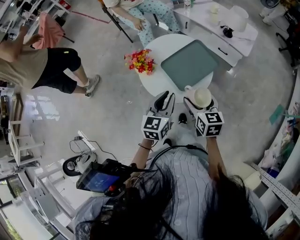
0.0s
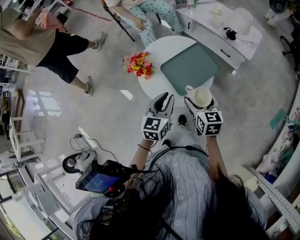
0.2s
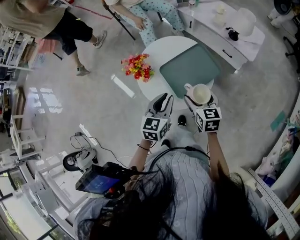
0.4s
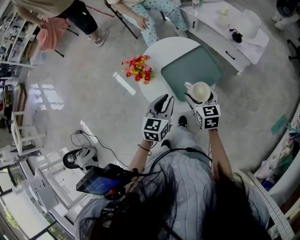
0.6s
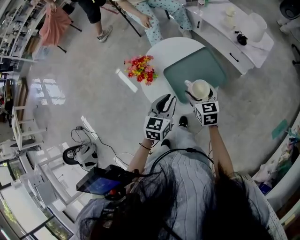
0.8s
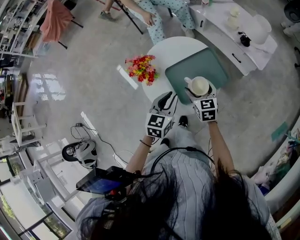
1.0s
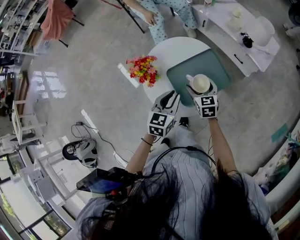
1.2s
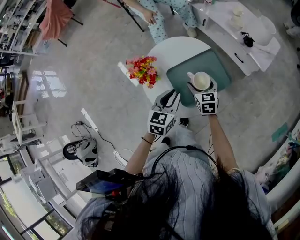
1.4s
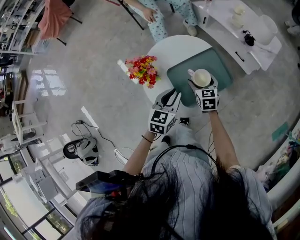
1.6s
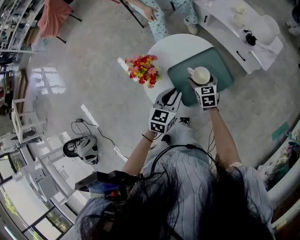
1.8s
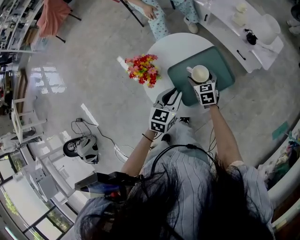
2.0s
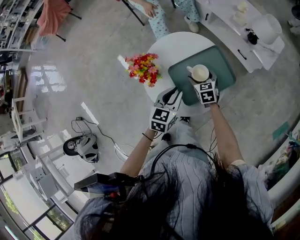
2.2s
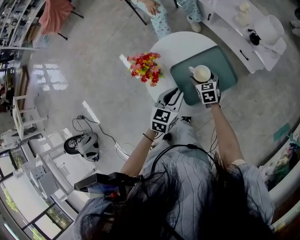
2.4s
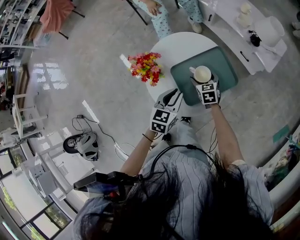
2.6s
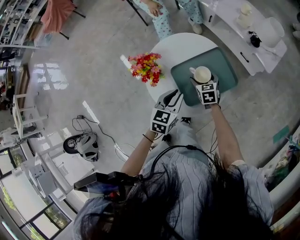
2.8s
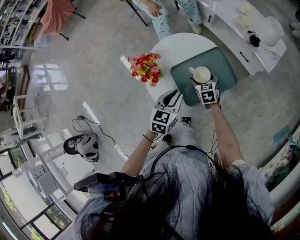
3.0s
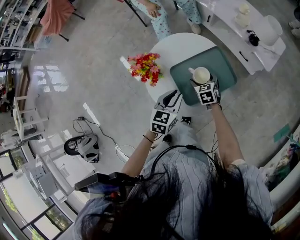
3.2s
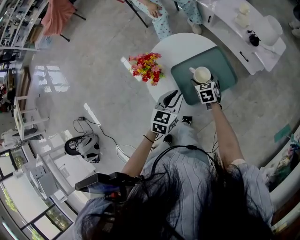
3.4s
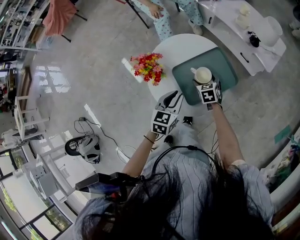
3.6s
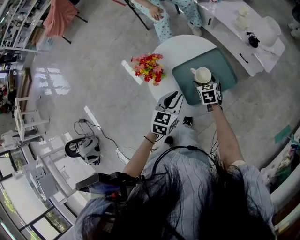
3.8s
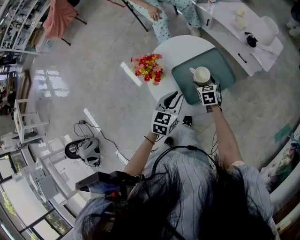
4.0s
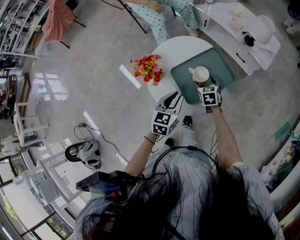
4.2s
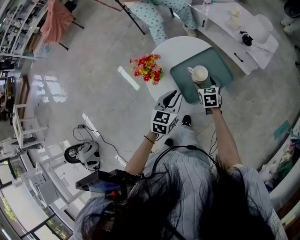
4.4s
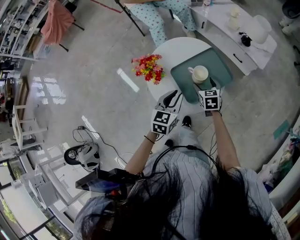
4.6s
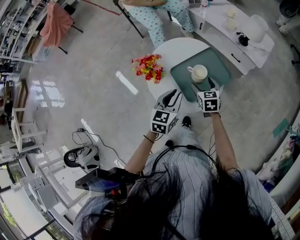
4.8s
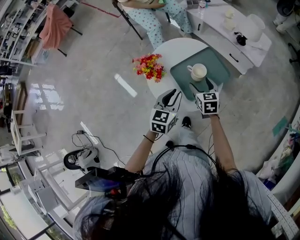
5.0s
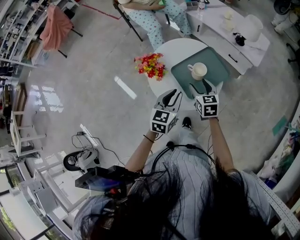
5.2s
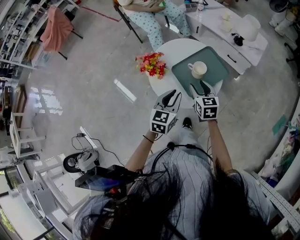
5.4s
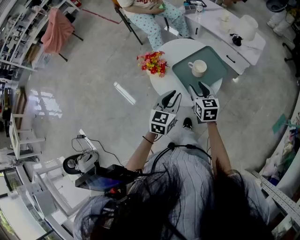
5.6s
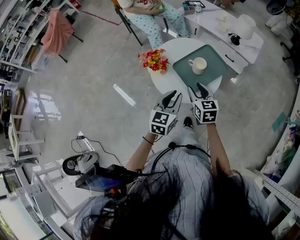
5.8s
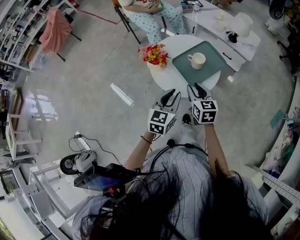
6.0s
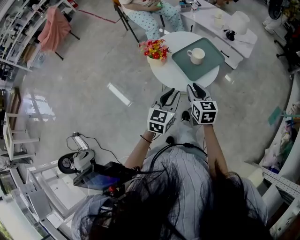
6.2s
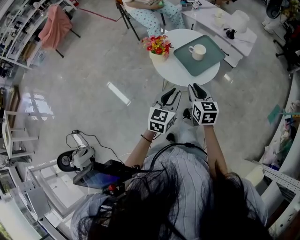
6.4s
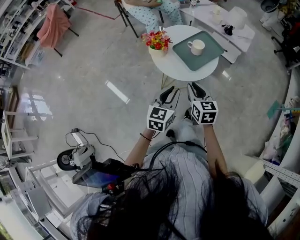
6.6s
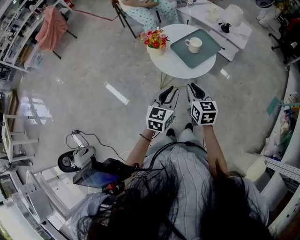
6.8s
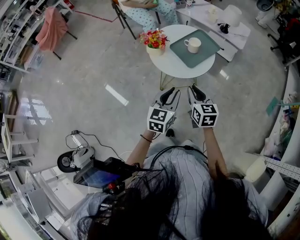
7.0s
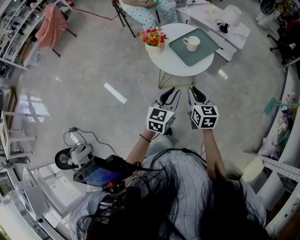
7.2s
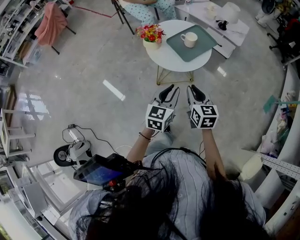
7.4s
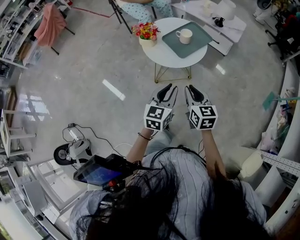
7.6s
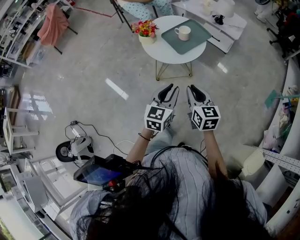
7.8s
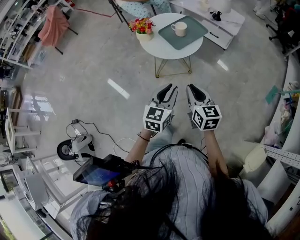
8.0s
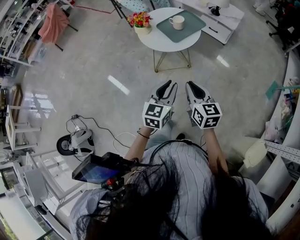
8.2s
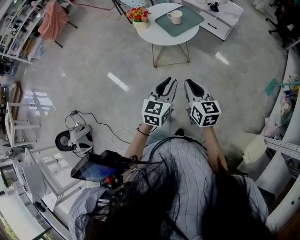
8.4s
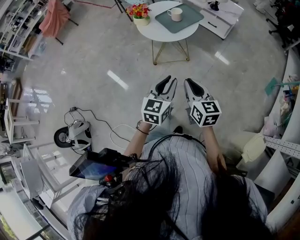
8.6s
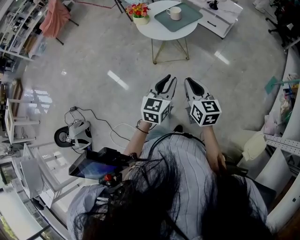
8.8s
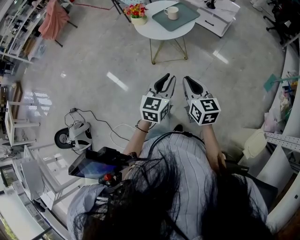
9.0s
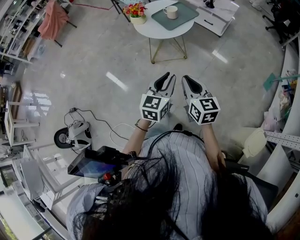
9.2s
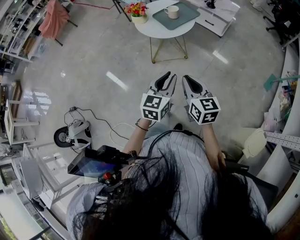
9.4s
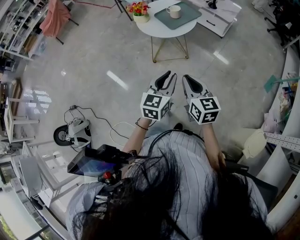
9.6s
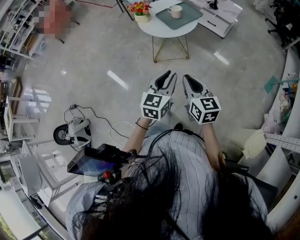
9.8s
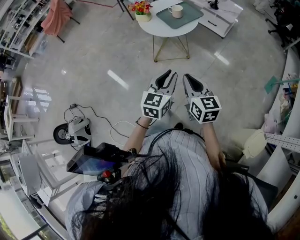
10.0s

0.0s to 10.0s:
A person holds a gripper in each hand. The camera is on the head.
0.0s to 1.4s: The right gripper moves forward and downward, some 25 cm. Meanwhile the left gripper goes roughly 15 cm forward and downward.
1.4s to 2.8s: The right gripper goes approximately 5 cm downward.
2.8s to 4.2s: The grippers stay close to where they were, moving slightly.
4.2s to 5.8s: The right gripper is displaced upward, backward and to the left by approximately 25 cm, turns by some 20 degrees, and closes. Meanwhile the left gripper travels backward and upward by roughly 15 cm.
5.8s to 7.2s: Both grippers move backward, some 20 cm.
7.2s to 8.6s: The grippers both shift backward and to the right by some 20 cm.
8.6s to 10.0s: The grippers move only a little.

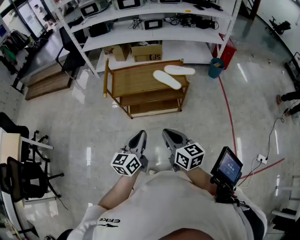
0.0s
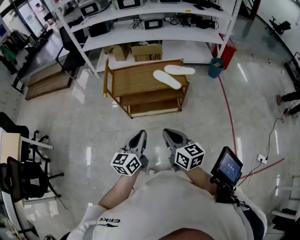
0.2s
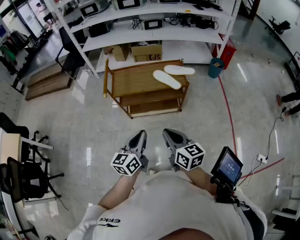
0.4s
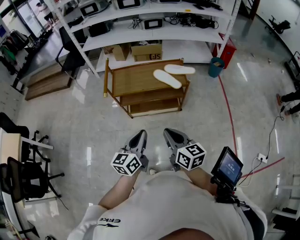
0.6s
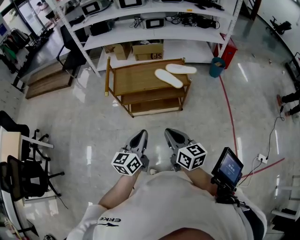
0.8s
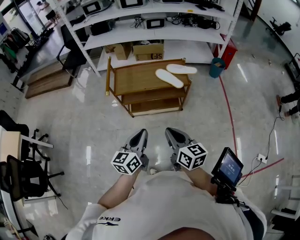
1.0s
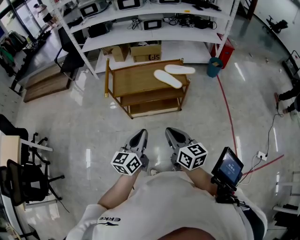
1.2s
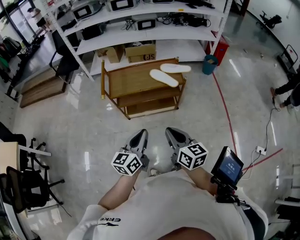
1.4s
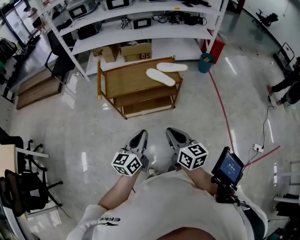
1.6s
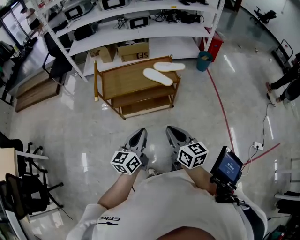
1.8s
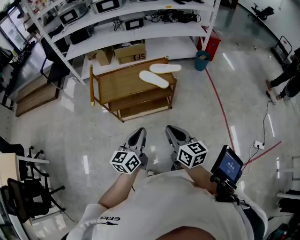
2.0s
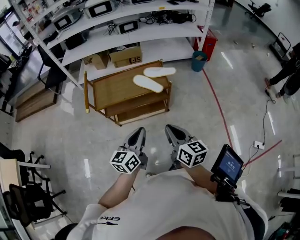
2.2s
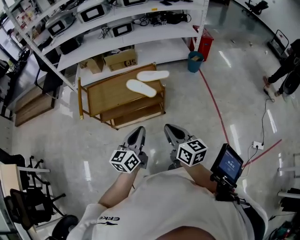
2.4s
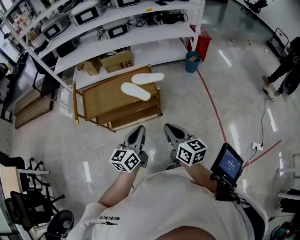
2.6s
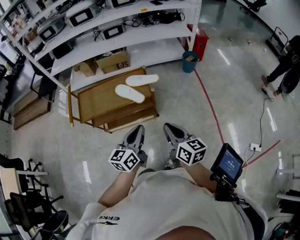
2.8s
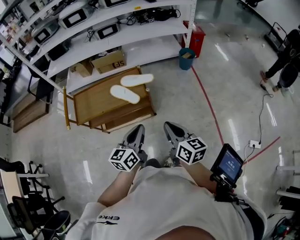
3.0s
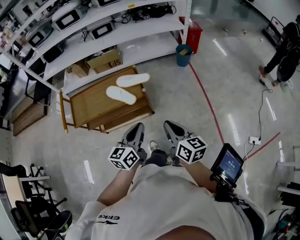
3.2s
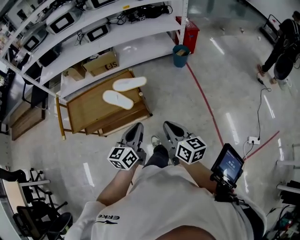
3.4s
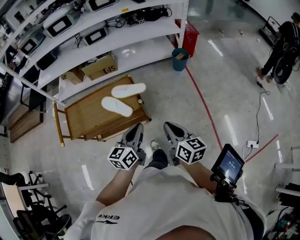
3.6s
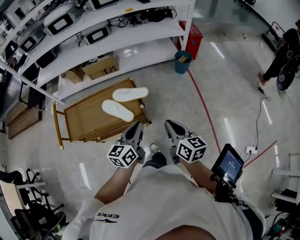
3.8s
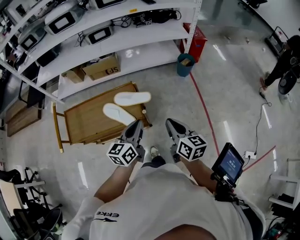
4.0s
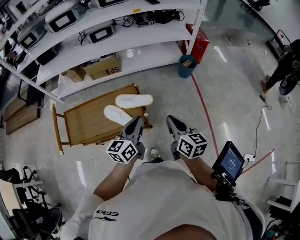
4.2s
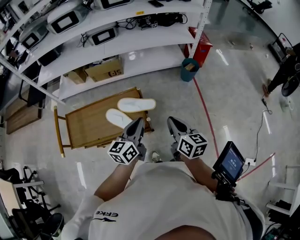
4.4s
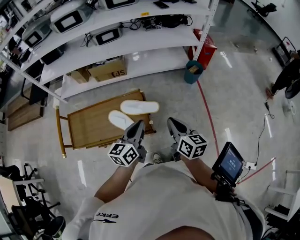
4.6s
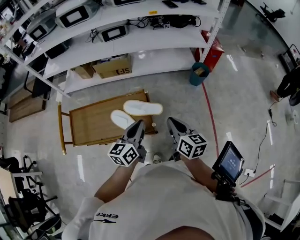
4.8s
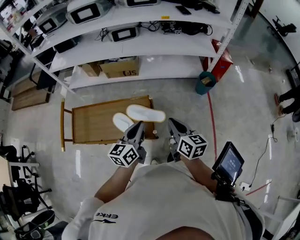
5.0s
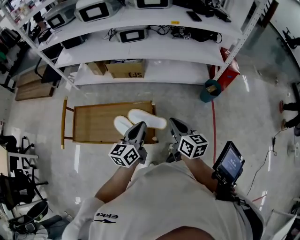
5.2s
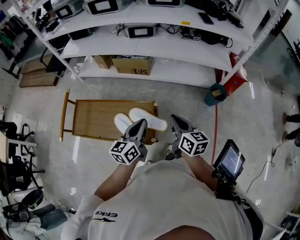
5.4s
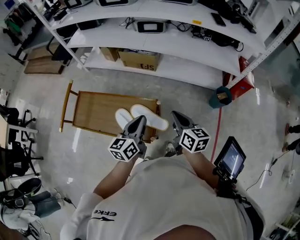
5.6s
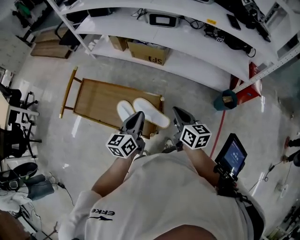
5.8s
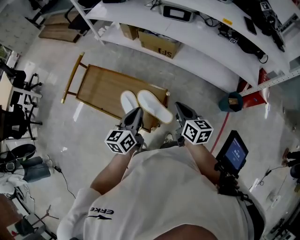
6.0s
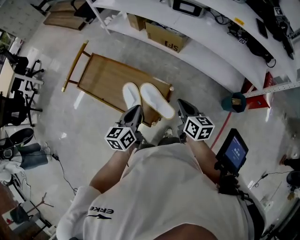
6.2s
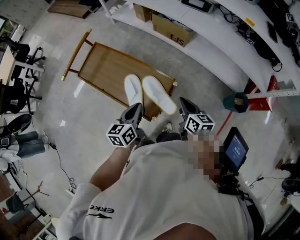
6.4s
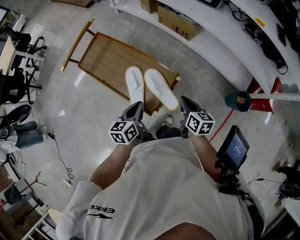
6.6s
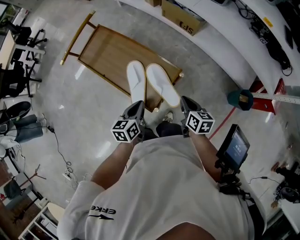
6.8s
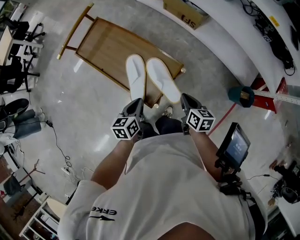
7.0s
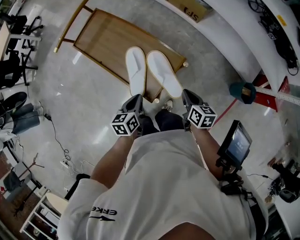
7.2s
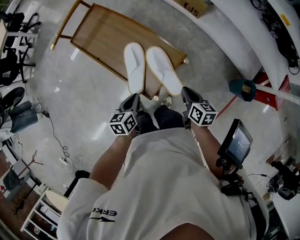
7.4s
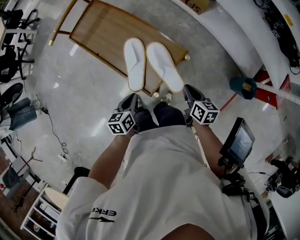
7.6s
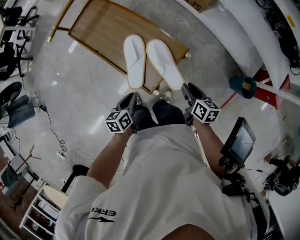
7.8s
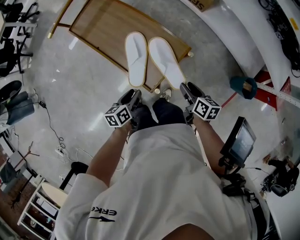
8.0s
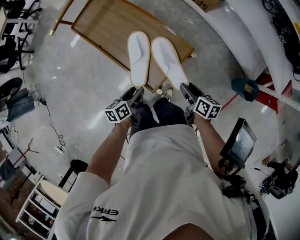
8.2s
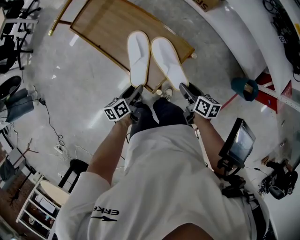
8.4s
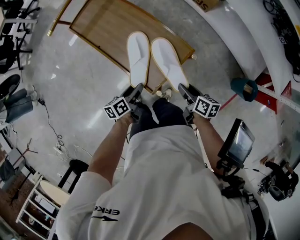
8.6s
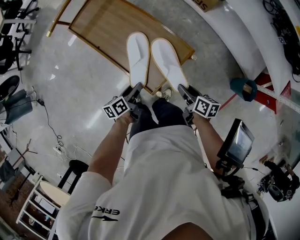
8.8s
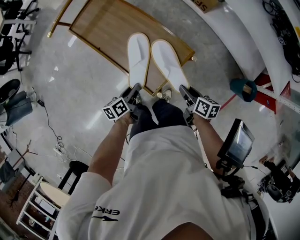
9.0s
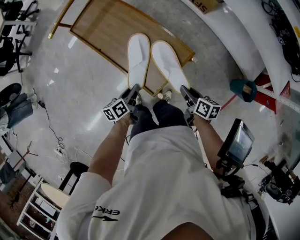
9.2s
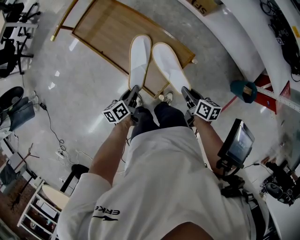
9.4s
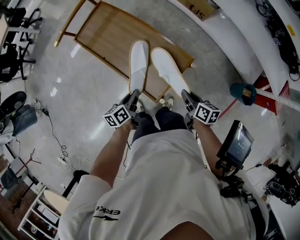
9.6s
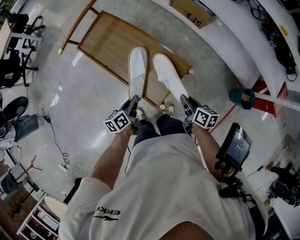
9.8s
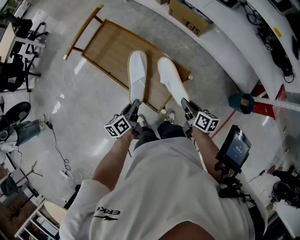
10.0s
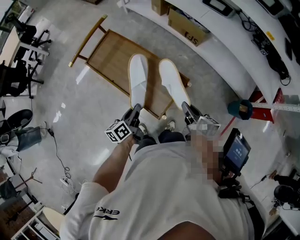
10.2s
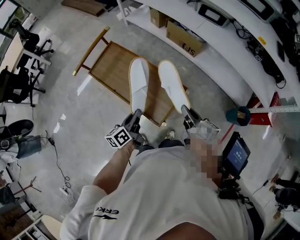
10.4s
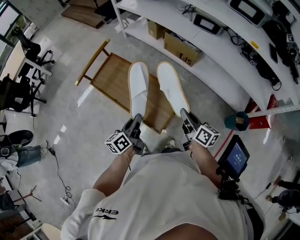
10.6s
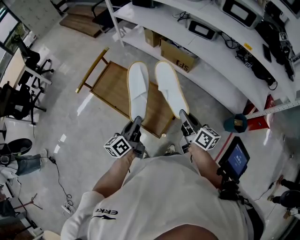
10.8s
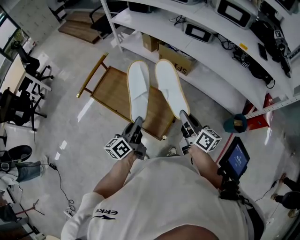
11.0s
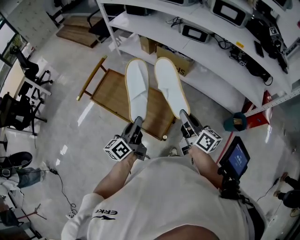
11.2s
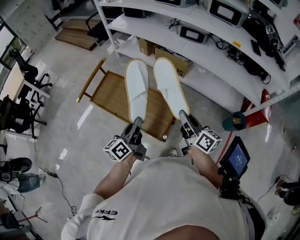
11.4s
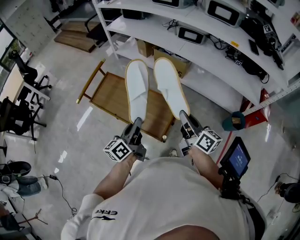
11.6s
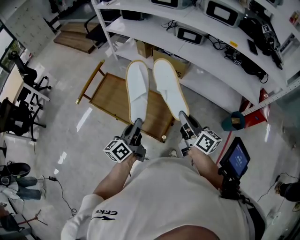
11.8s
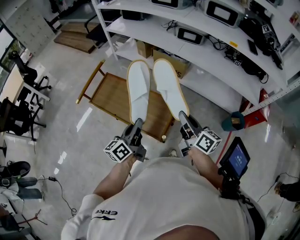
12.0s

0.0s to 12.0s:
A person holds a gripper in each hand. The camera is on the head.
0.0s to 1.6s: There are only small adjustments of the grippers.
1.6s to 3.0s: The grippers both shift to the right and forward by about 30 cm.
3.0s to 4.4s: The grippers both shift forward by approximately 25 cm.
4.4s to 6.0s: The left gripper shifts by about 15 cm, and turns by about 40 degrees, while the right gripper shifts by some 25 cm, and changes its angle by approximately 40 degrees.
6.0s to 7.6s: The left gripper shifts about 25 cm downward and backward, and rotates some 30 degrees. The right gripper goes roughly 20 cm downward, and rotates about 20 degrees.
7.6s to 9.0s: The right gripper opens its fingers. Meanwhile the left gripper changes place by approximately 5 cm, rotates some 20 degrees, and opens.
9.0s to 10.4s: Both grippers move upward, some 15 cm. The right gripper changes its angle by about 20 degrees, and closes. Meanwhile the left gripper closes up.
10.4s to 12.0s: The two grippers go roughly 15 cm upward. The left gripper rotates approximately 20 degrees. Meanwhile the right gripper changes its angle by about 20 degrees.

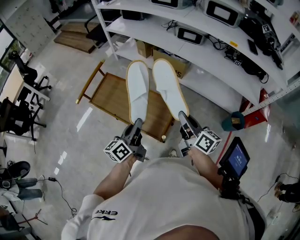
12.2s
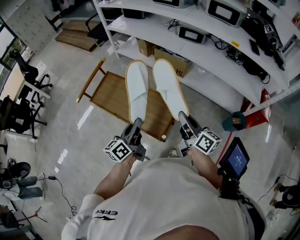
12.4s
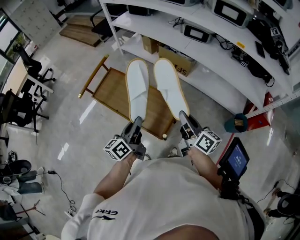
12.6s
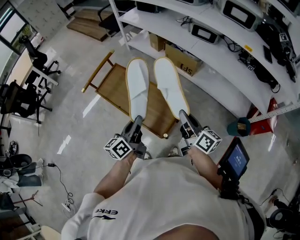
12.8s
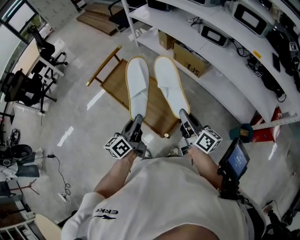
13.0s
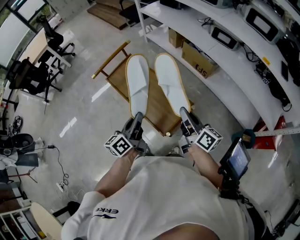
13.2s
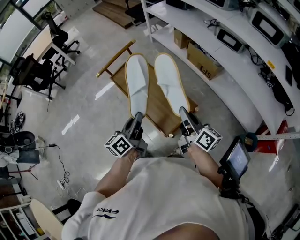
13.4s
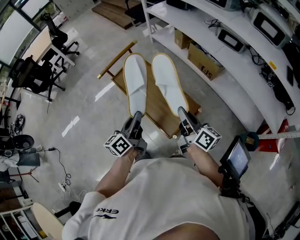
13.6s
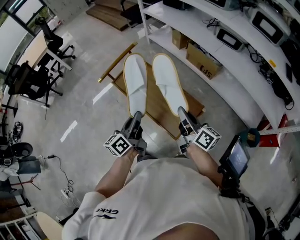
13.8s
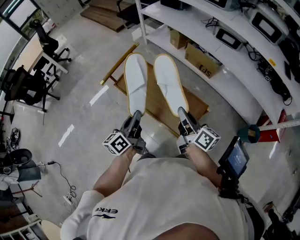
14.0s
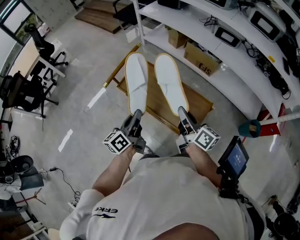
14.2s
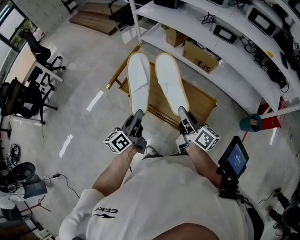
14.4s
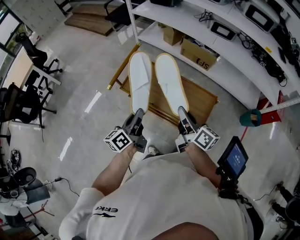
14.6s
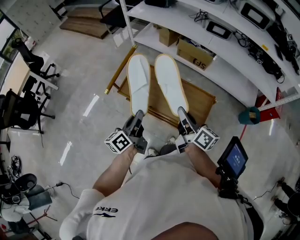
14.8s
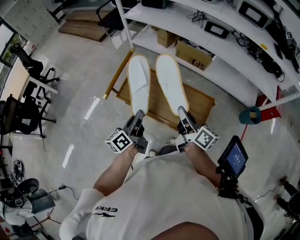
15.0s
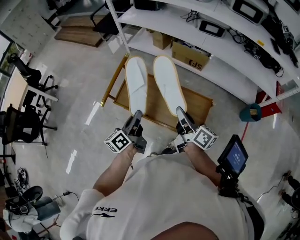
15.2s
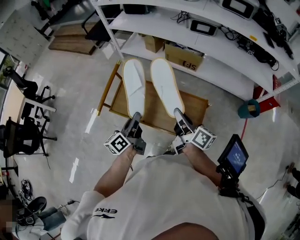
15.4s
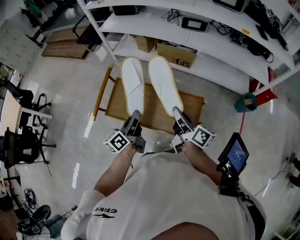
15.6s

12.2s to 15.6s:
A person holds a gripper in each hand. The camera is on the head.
12.2s to 13.8s: The right gripper moves to the left and forward, approximately 10 cm; the left gripper shifts approximately 10 cm to the left.
13.8s to 15.6s: The right gripper turns by about 30 degrees, while the left gripper ends up some 15 cm from where it was, and swivels about 30 degrees.
